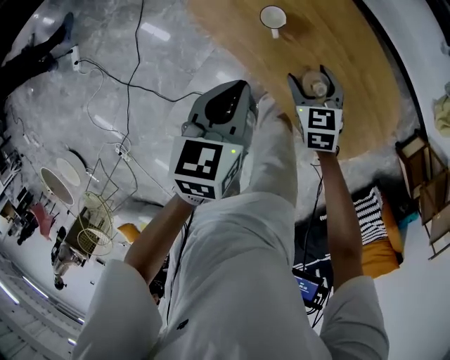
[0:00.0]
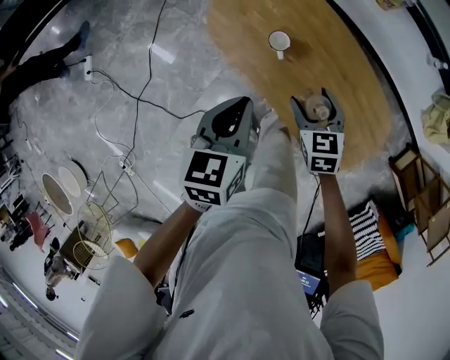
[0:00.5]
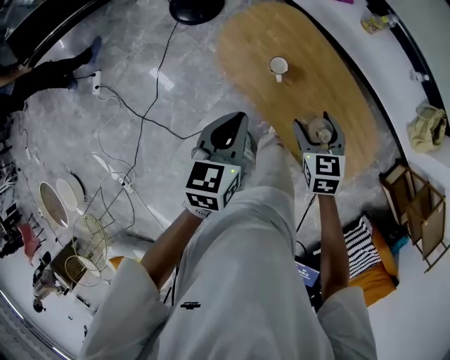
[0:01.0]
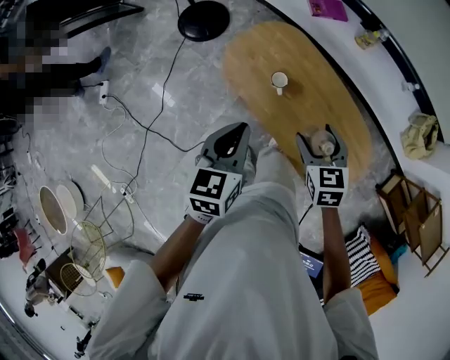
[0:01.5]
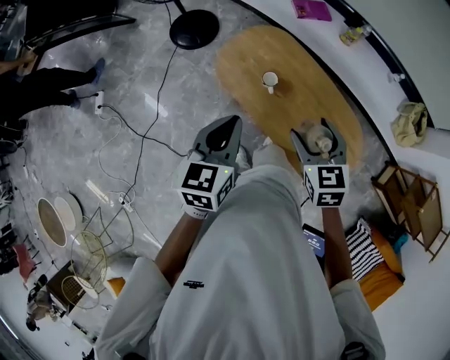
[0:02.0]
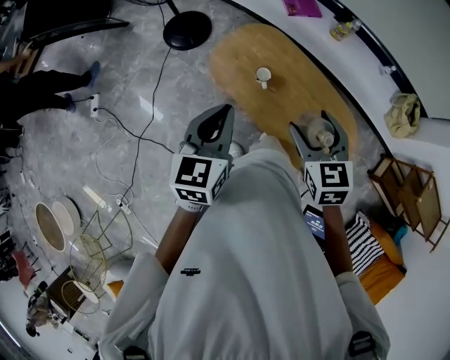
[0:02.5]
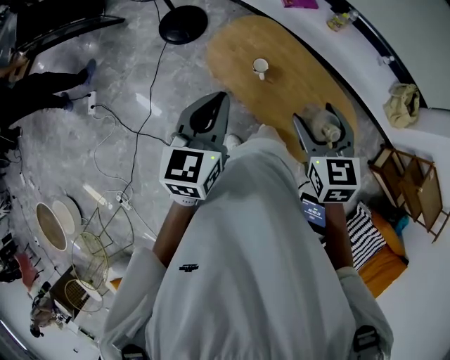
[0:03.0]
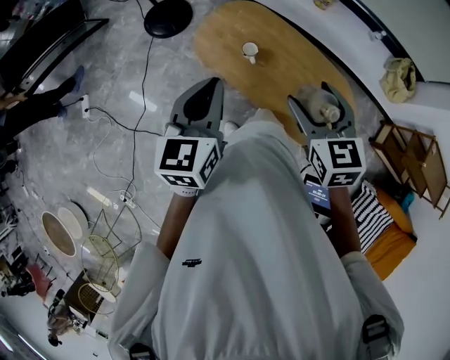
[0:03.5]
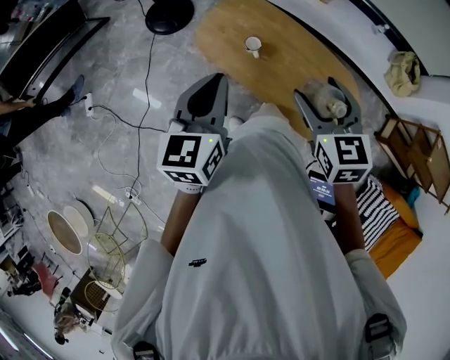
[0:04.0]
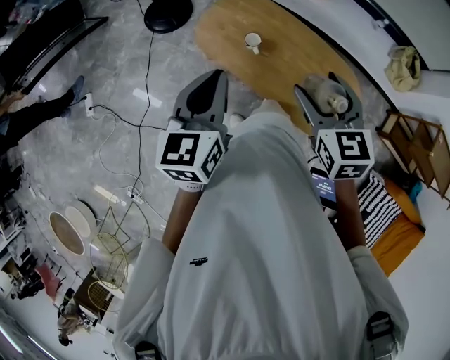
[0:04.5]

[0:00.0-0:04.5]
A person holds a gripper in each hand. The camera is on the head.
0:00.0 to 0:02.0: The right gripper heads upward, covering approximately 30 cm; the left gripper shifts approximately 20 cm upward.
0:02.0 to 0:04.5: Both grippers move upward, roughly 5 cm.

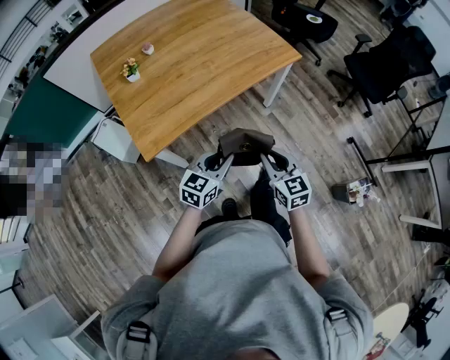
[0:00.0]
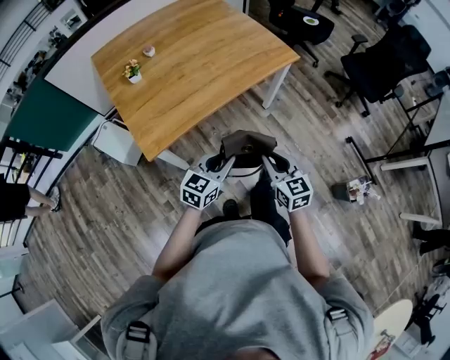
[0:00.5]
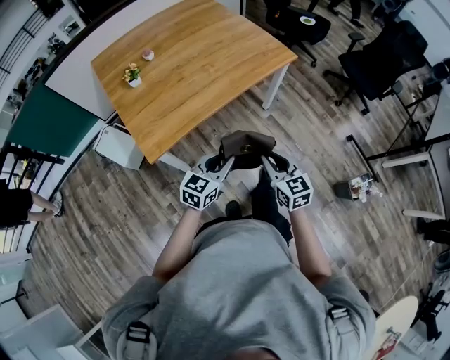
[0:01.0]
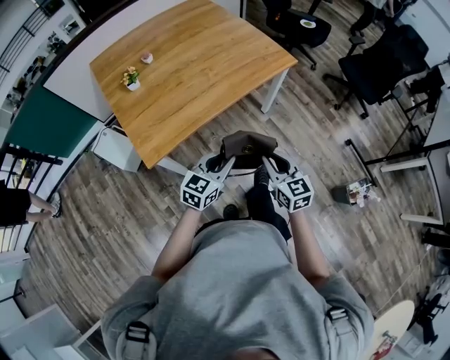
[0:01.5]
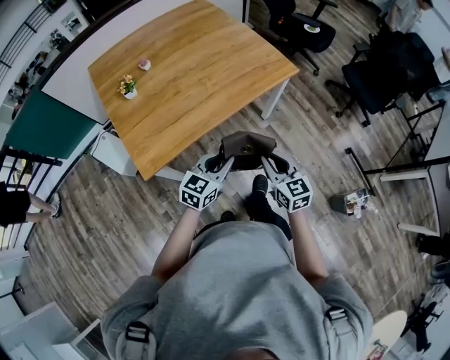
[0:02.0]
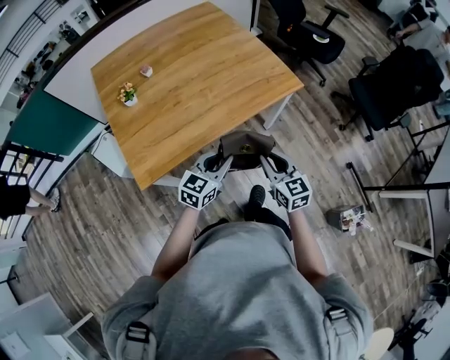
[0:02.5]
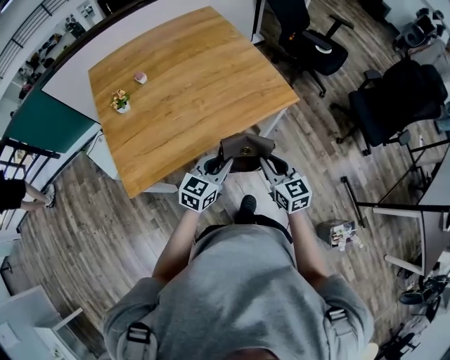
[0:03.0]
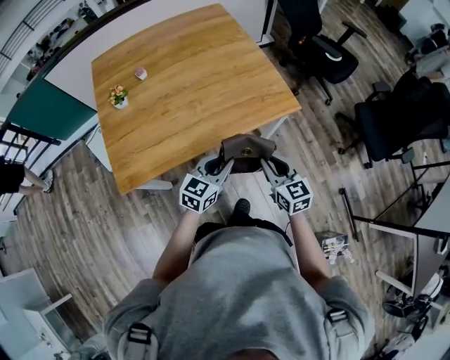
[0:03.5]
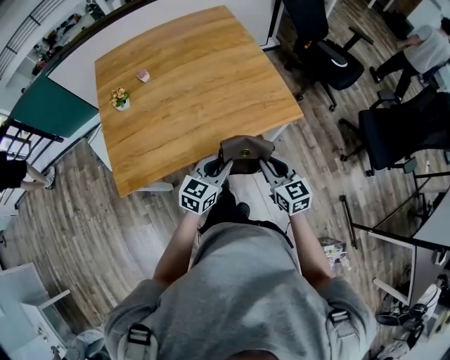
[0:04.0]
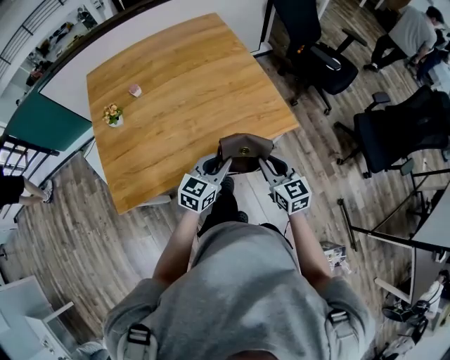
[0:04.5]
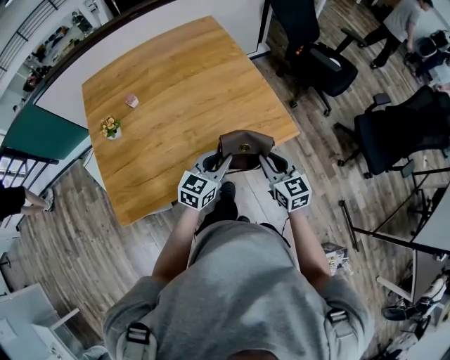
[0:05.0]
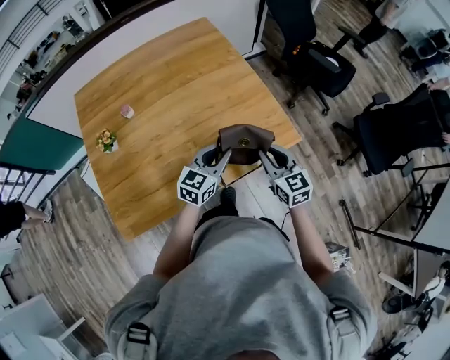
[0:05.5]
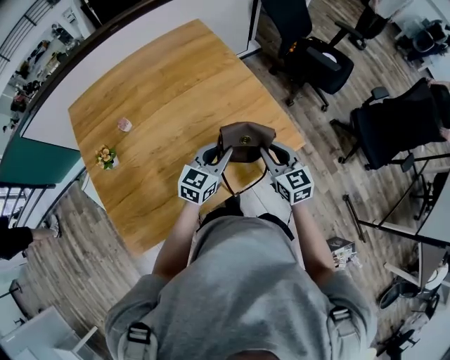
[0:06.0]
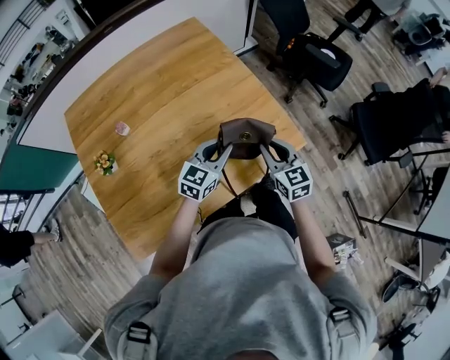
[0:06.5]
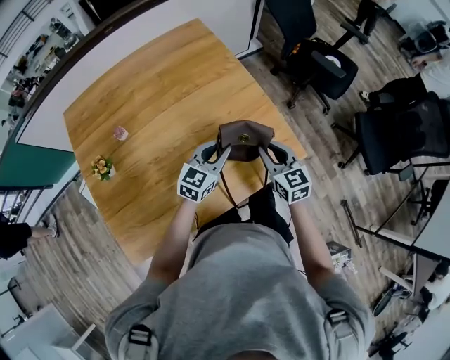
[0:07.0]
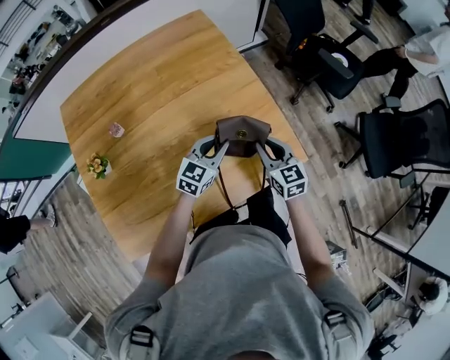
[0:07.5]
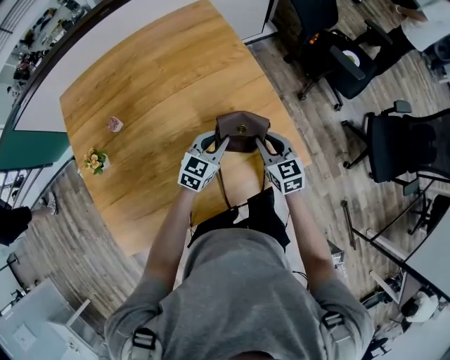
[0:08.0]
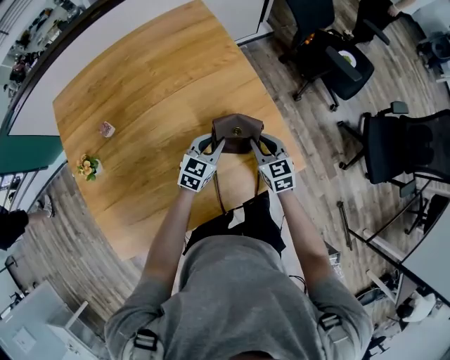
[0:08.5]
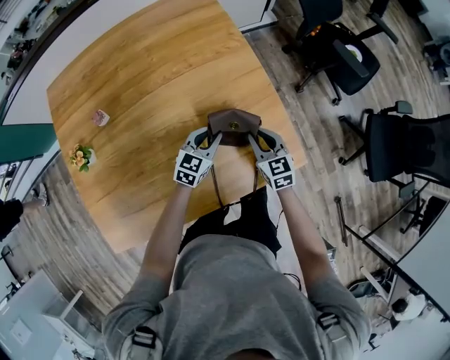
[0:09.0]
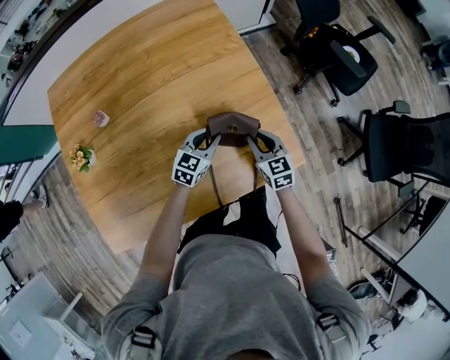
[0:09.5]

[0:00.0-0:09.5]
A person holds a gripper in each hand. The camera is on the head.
0:00.0 to 0:02.0: The two grippers go approximately 5 cm forward.
0:02.0 to 0:04.0: The grippers both shift forward and to the right by some 25 cm.
0:04.0 to 0:05.5: Both grippers move forward, roughly 20 cm.
0:05.5 to 0:07.5: Both grippers travel together forward, approximately 15 cm.
0:07.5 to 0:09.5: Both grippers travel together downward, about 10 cm.

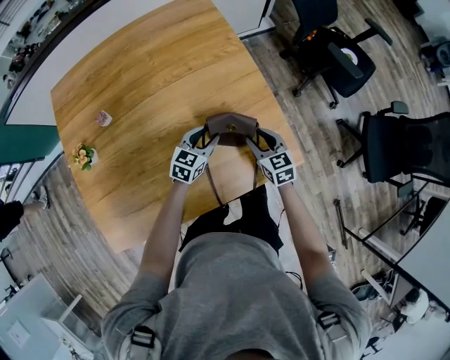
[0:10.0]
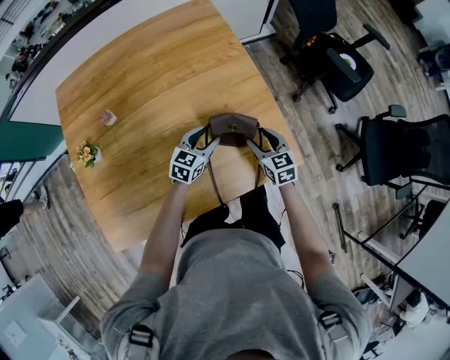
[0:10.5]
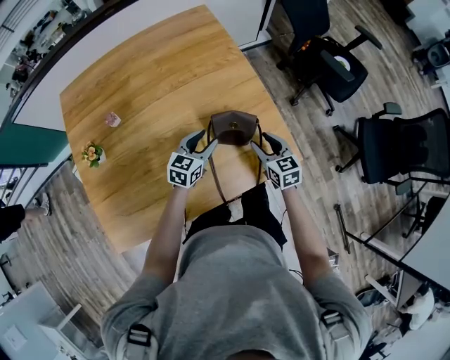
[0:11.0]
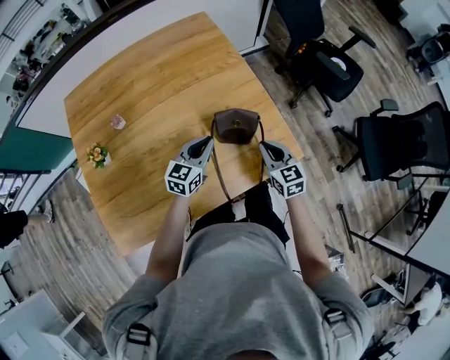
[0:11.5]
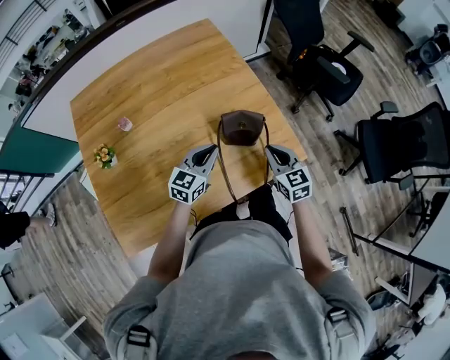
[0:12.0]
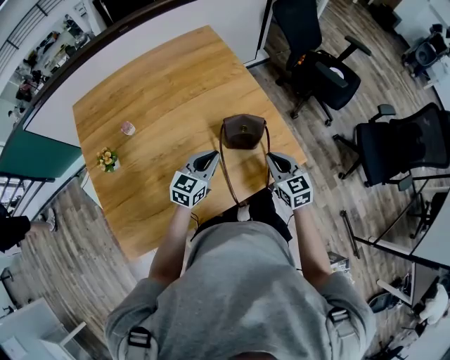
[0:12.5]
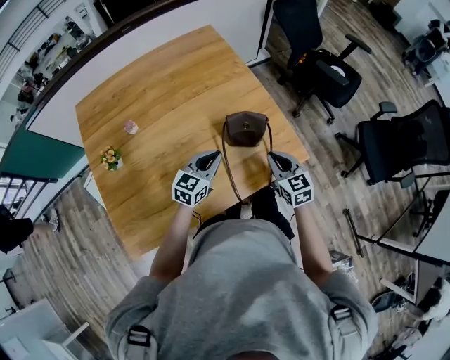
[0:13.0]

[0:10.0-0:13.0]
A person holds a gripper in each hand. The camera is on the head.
0:10.0 to 0:11.5: Both grippers move upward and backward, some 15 cm. The right gripper closes up. Meanwhile the left gripper closes its fingers.
0:11.5 to 0:13.0: The left gripper moves backward, some 5 cm; the right gripper shifts by about 5 cm.

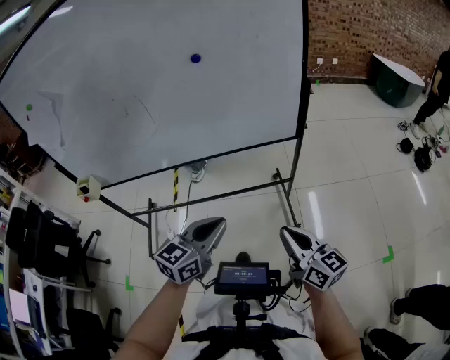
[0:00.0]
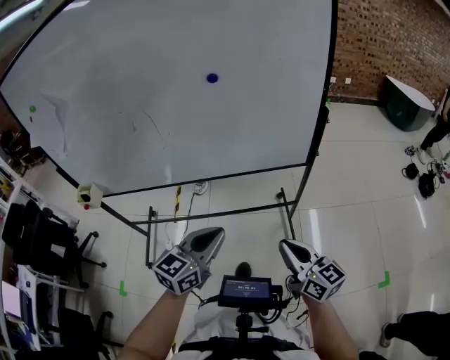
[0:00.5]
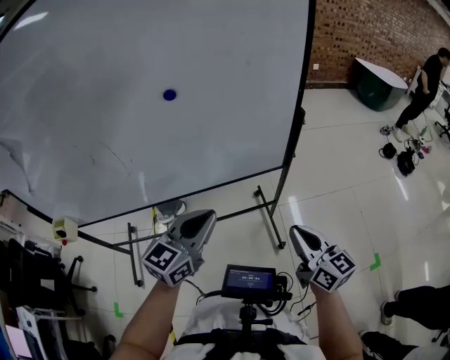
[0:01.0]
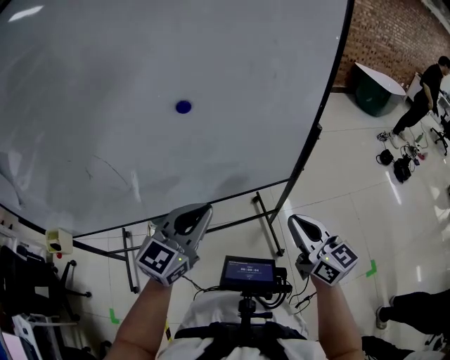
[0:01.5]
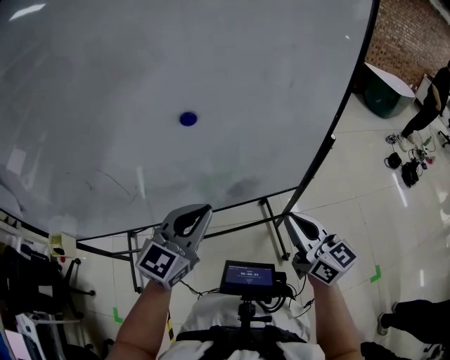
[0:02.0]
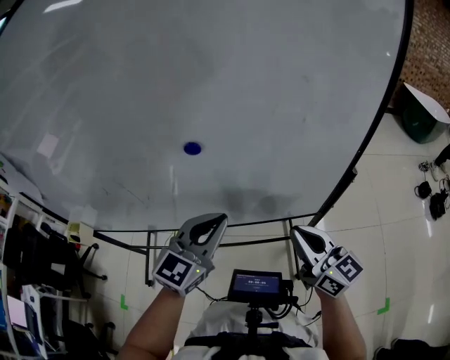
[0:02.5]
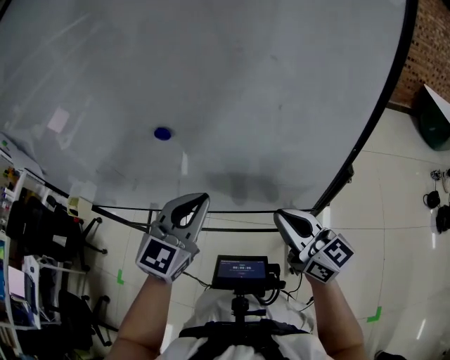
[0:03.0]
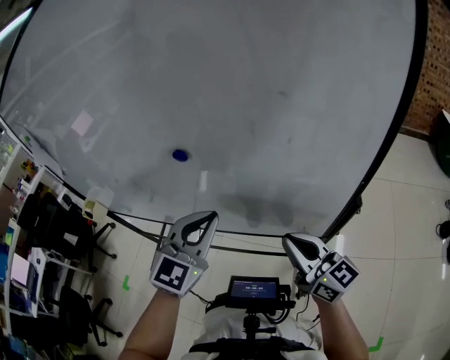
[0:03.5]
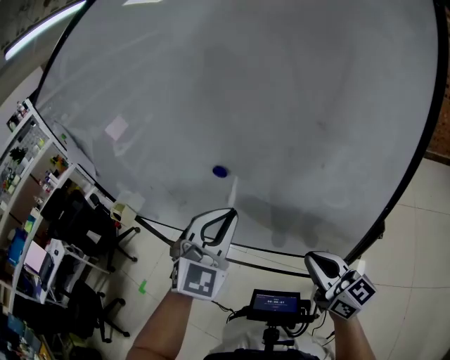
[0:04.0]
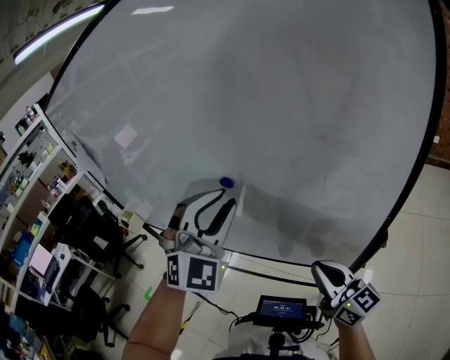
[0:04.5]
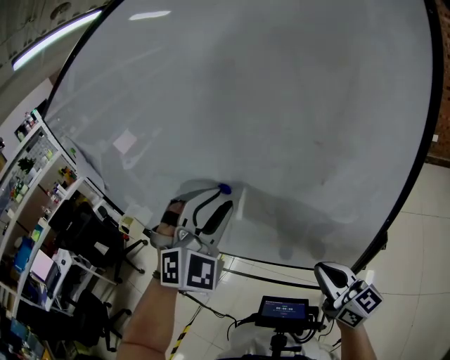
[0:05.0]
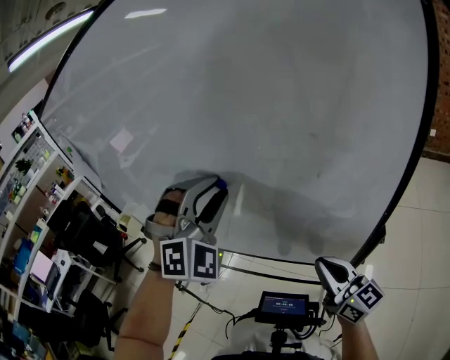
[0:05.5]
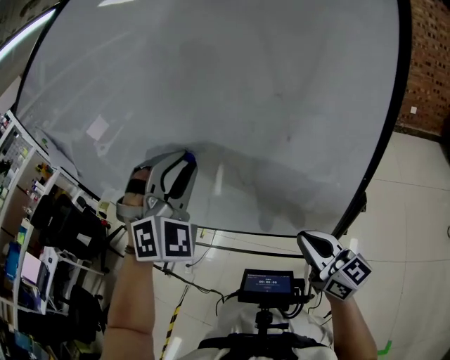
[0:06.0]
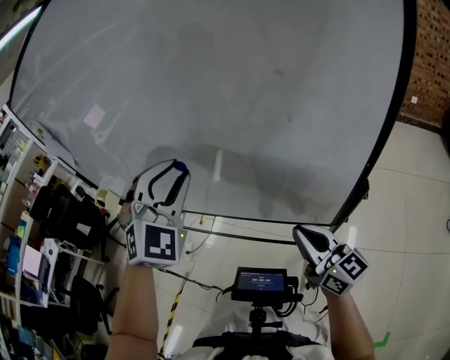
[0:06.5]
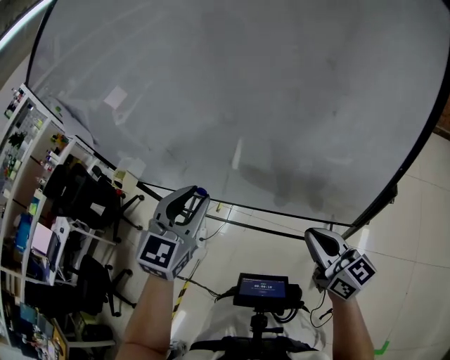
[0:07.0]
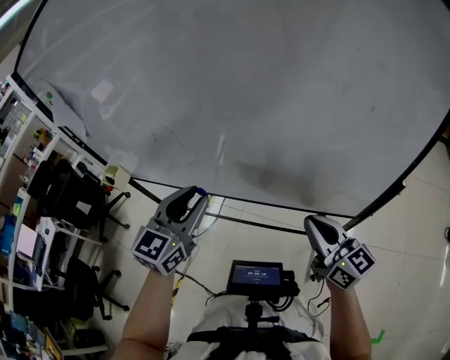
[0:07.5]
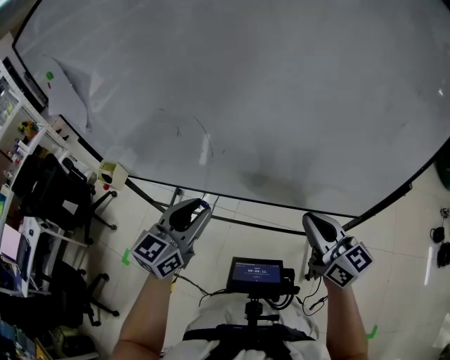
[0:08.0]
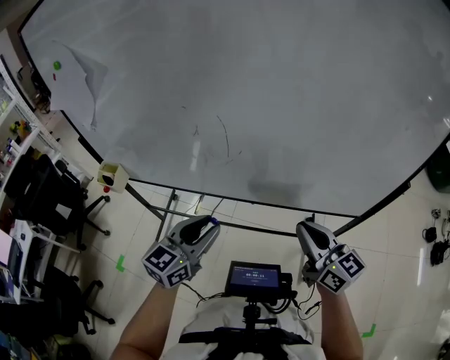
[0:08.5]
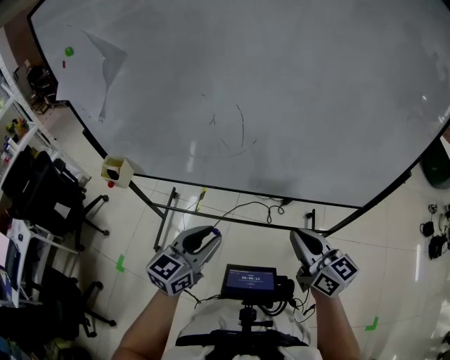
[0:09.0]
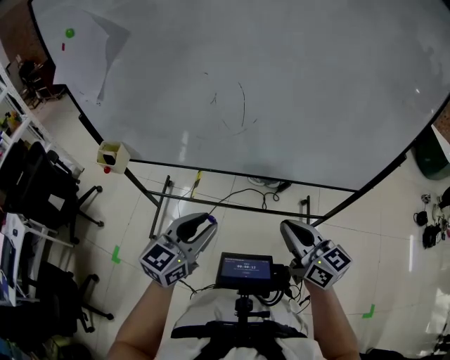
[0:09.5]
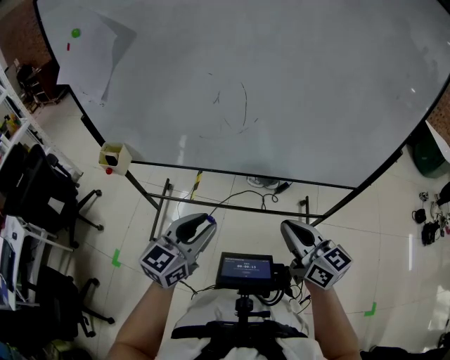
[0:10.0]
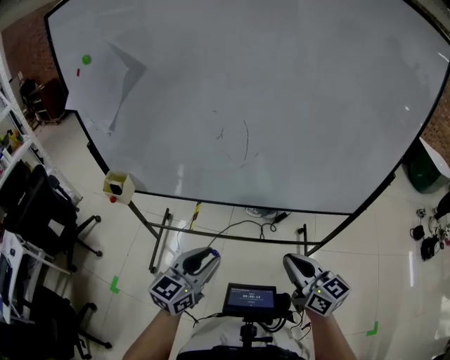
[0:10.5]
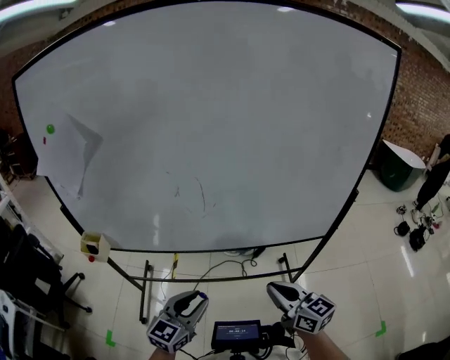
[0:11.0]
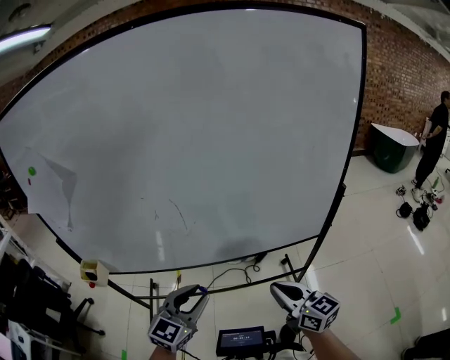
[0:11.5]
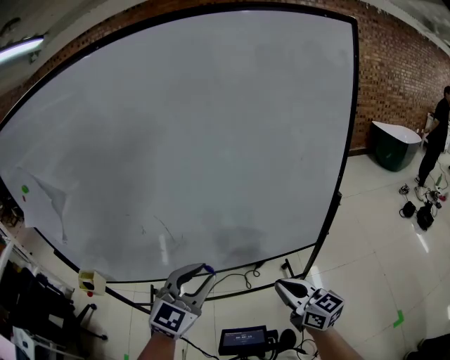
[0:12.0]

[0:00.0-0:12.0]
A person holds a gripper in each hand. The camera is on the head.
0:00.0 to 0:02.0: Both grippers travel together forward, about 30 cm.
0:02.0 to 0:04.0: The right gripper ends up some 10 cm from where it was, and rotates some 30 degrees, while the left gripper goes roughly 10 cm upward, and turns by about 50 degrees.
0:04.0 to 0:06.0: The left gripper moves upward, about 10 cm, rotates some 30 degrees, and opens.
0:06.0 to 0:08.0: The left gripper moves to the left and downward, some 30 cm, and twists approximately 80 degrees counterclockwise, seen from behind. The right gripper goes approximately 20 cm to the left.
0:08.0 to 0:10.0: The left gripper shifts about 20 cm backward, to the left and downward, while the right gripper is displaced to the left and backward by approximately 20 cm.
0:10.0 to 0:12.0: The left gripper heads to the right, upward and forward, covering about 25 cm, and rotates approximately 30 degrees. Meanwhile the right gripper goes roughly 15 cm to the right.
